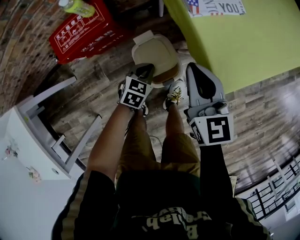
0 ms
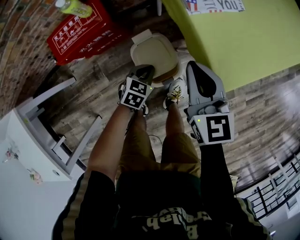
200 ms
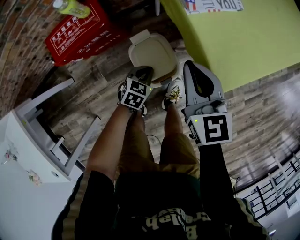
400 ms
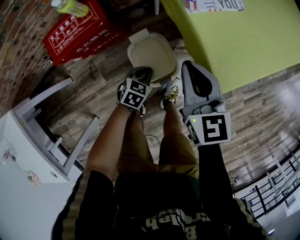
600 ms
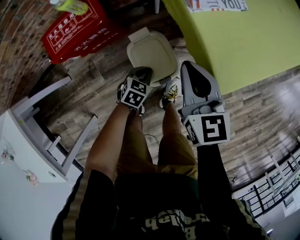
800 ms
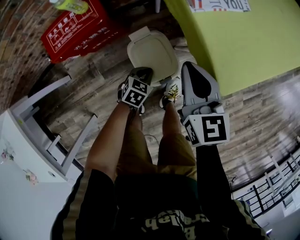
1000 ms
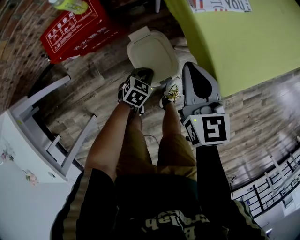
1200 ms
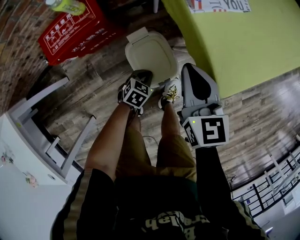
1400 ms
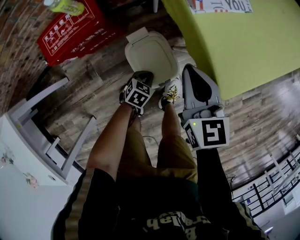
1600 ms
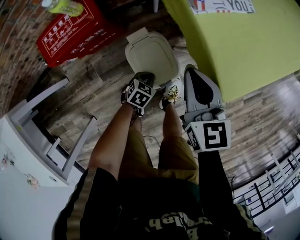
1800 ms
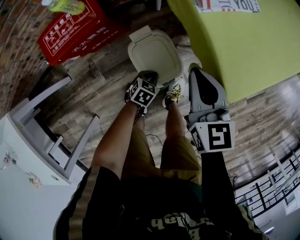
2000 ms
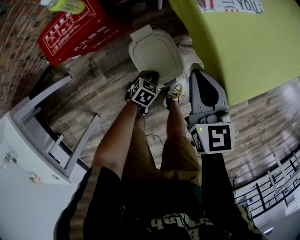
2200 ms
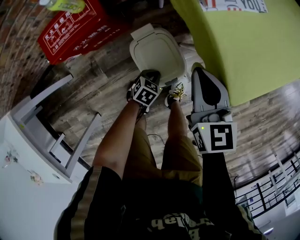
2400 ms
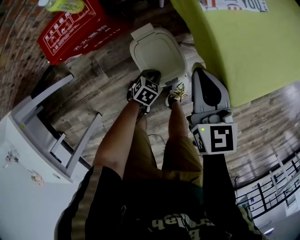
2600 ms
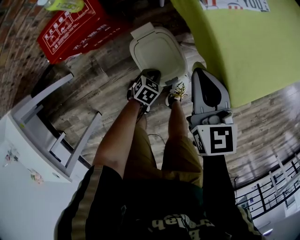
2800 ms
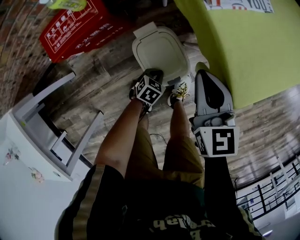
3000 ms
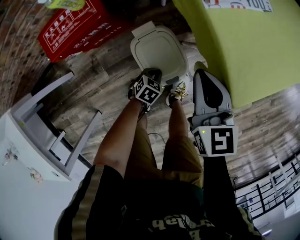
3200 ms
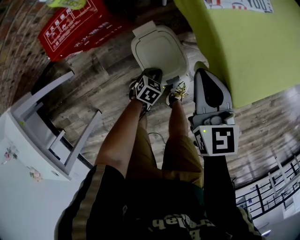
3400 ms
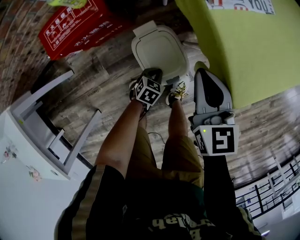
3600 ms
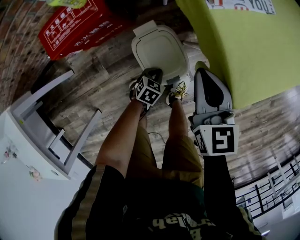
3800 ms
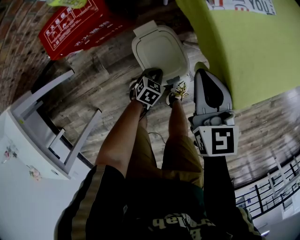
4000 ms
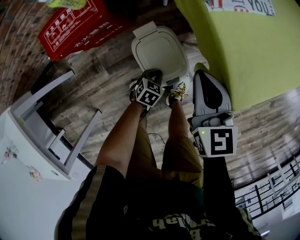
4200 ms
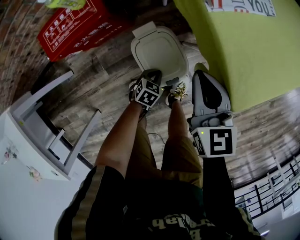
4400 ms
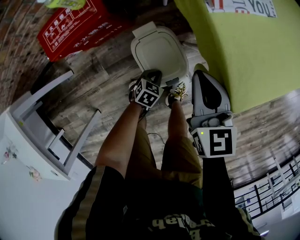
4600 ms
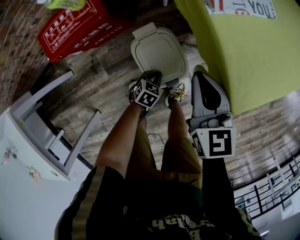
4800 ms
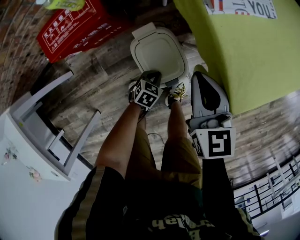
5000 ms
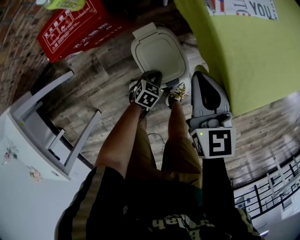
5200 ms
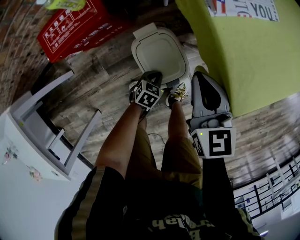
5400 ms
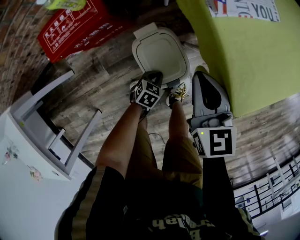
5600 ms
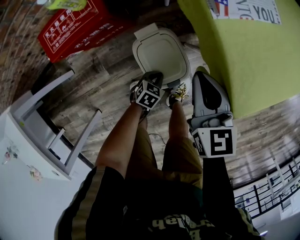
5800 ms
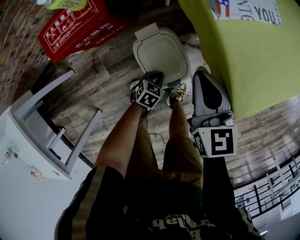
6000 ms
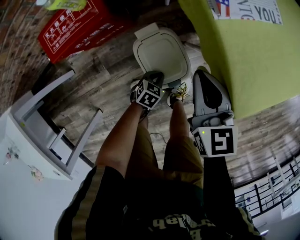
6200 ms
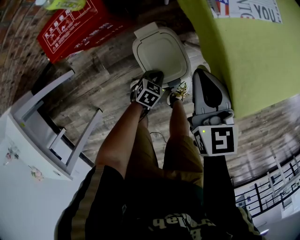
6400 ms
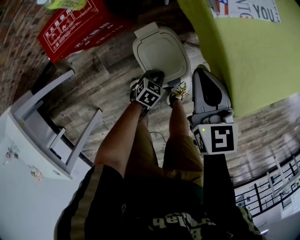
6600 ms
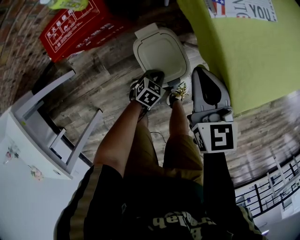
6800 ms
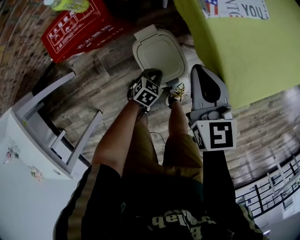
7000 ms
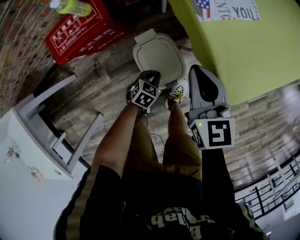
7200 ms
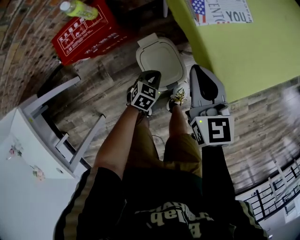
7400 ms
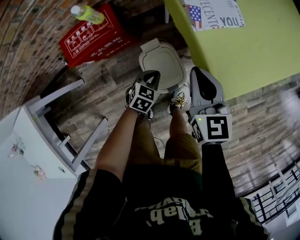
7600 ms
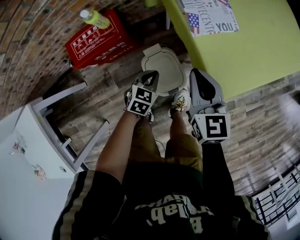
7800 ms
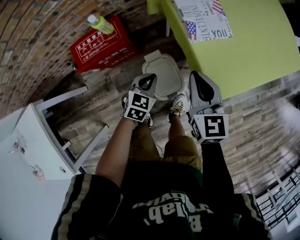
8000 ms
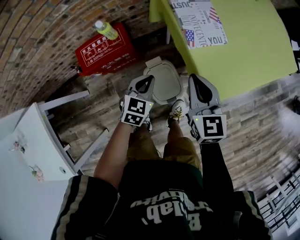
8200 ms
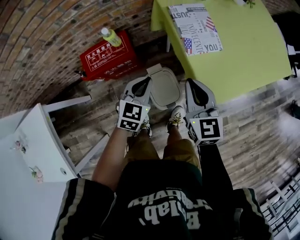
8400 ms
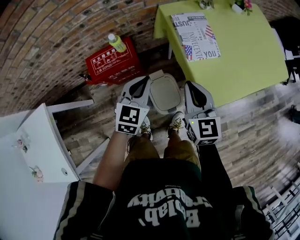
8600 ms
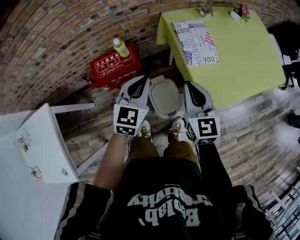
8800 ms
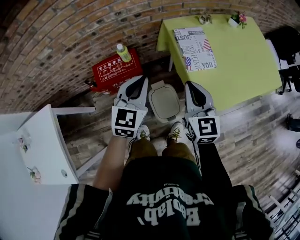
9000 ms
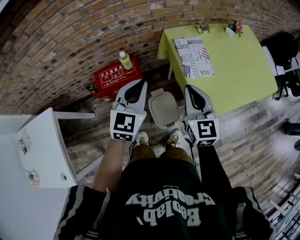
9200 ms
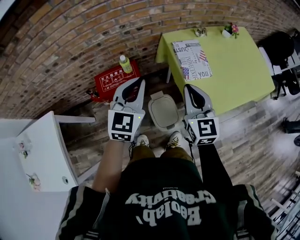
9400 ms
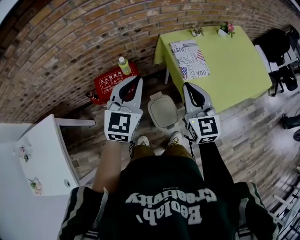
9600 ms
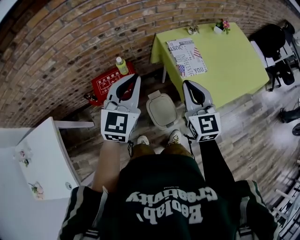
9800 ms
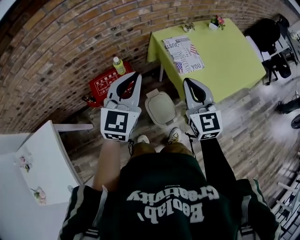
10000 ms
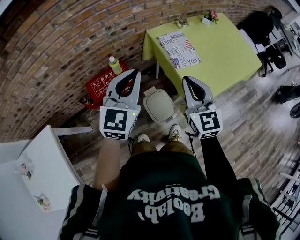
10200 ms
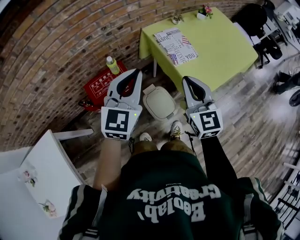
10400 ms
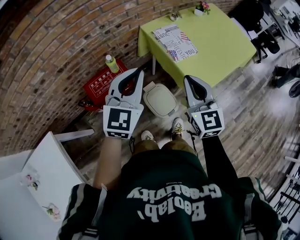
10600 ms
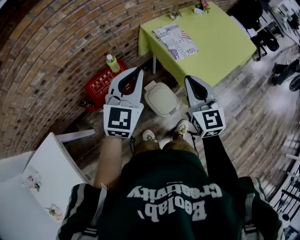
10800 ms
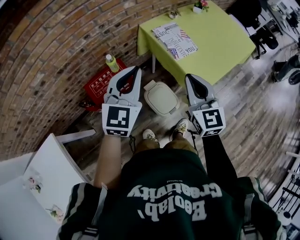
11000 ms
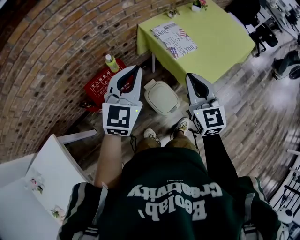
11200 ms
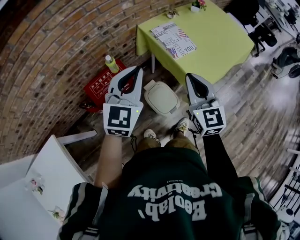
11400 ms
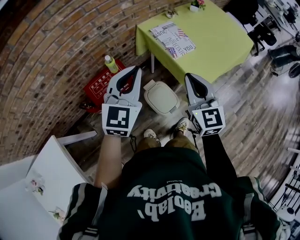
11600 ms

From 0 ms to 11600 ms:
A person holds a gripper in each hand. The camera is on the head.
From 0 ms to 1400 ms: The left gripper heads downward, covering some 10 cm.
From 1400 ms to 2800 ms: The left gripper heads downward, covering approximately 5 cm.
From 2800 ms to 4400 ms: The grippers stay close to where they were, moving slightly.
From 4400 ms to 5800 ms: The two grippers keep their place.
From 5800 ms to 7200 ms: The left gripper is displaced upward by roughly 5 cm.
From 7200 ms to 8800 ms: The right gripper heads upward, covering about 20 cm. The left gripper goes roughly 50 cm upward, and tips its fingers upward by some 30 degrees.
From 8800 ms to 10200 ms: Both grippers move upward, roughly 15 cm.
From 10200 ms to 11600 ms: The grippers stay close to where they were, moving slightly.

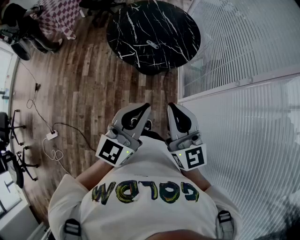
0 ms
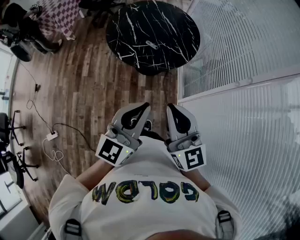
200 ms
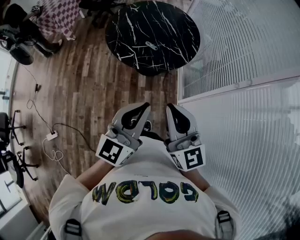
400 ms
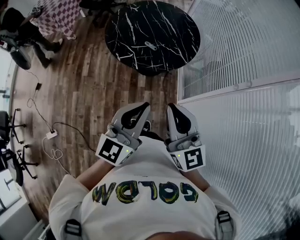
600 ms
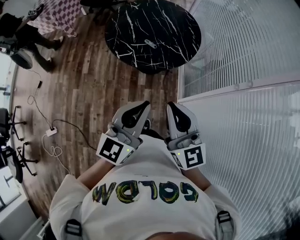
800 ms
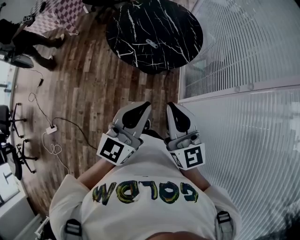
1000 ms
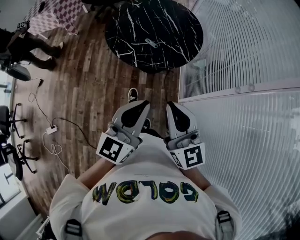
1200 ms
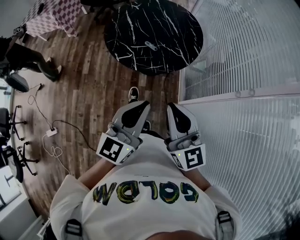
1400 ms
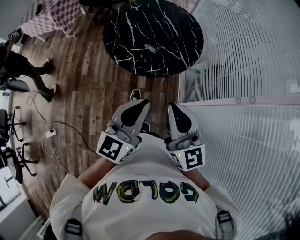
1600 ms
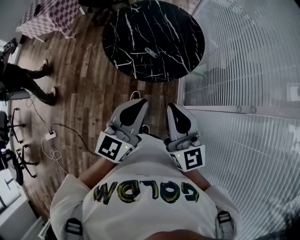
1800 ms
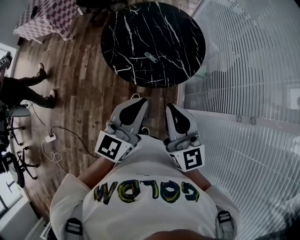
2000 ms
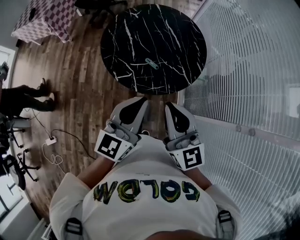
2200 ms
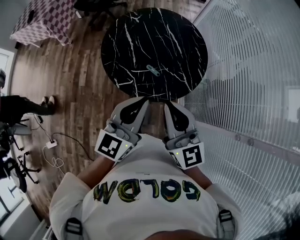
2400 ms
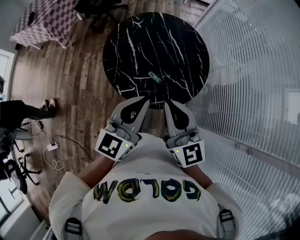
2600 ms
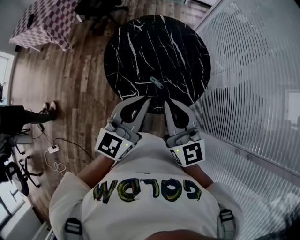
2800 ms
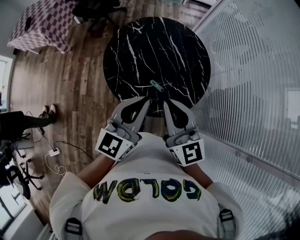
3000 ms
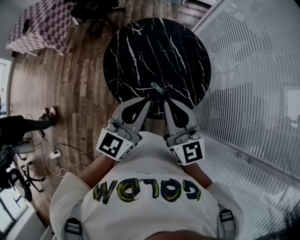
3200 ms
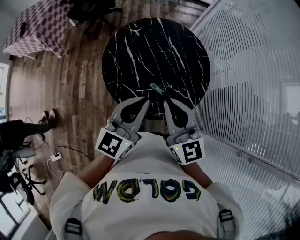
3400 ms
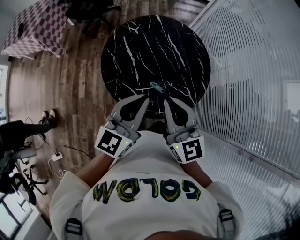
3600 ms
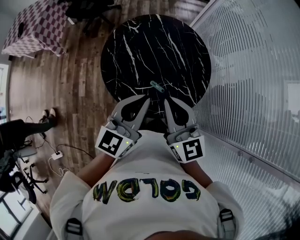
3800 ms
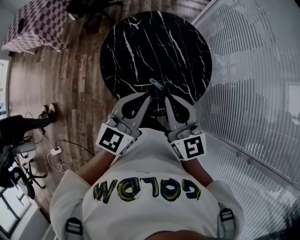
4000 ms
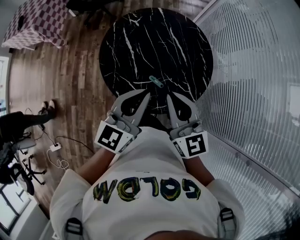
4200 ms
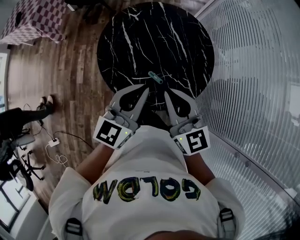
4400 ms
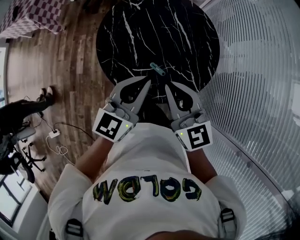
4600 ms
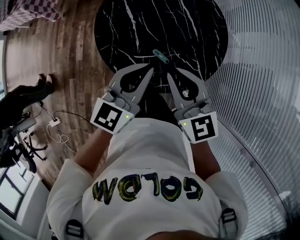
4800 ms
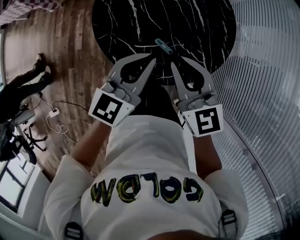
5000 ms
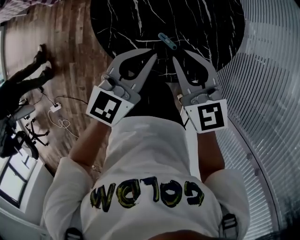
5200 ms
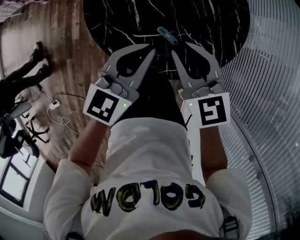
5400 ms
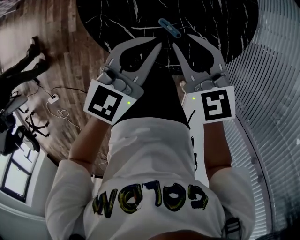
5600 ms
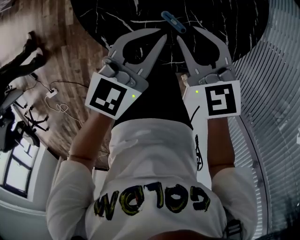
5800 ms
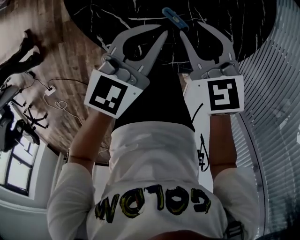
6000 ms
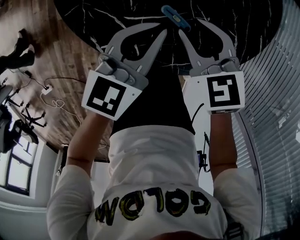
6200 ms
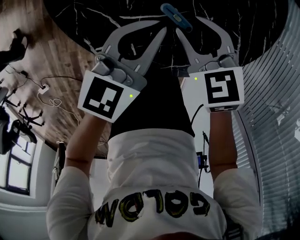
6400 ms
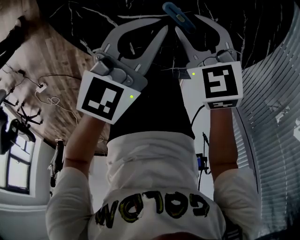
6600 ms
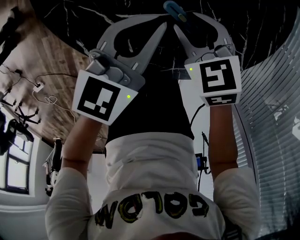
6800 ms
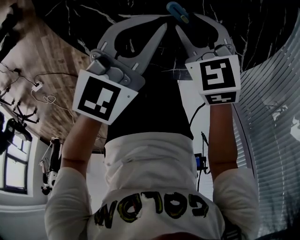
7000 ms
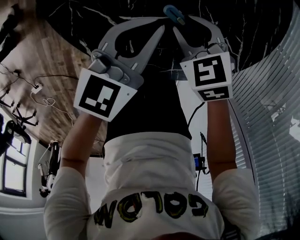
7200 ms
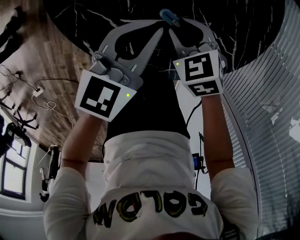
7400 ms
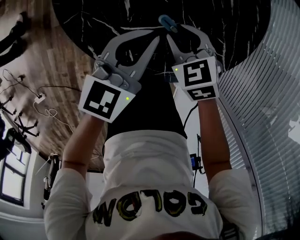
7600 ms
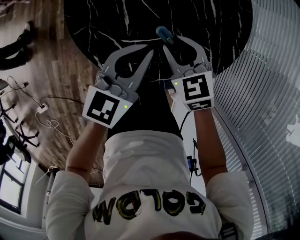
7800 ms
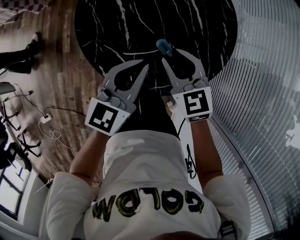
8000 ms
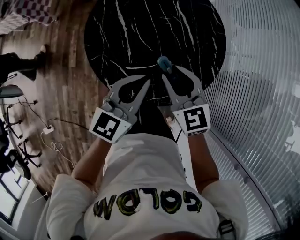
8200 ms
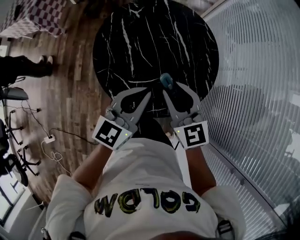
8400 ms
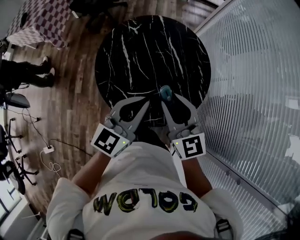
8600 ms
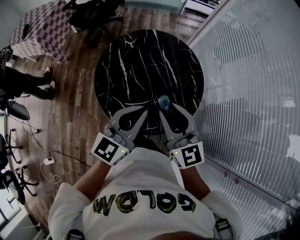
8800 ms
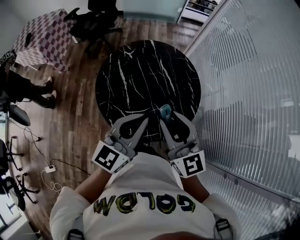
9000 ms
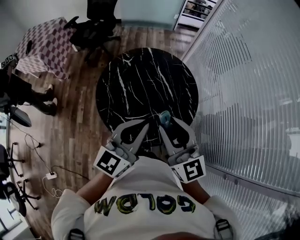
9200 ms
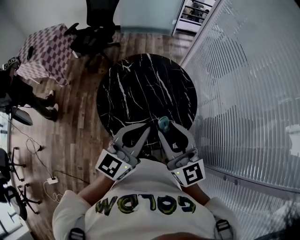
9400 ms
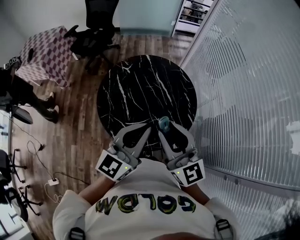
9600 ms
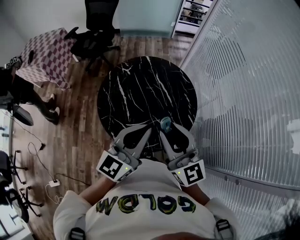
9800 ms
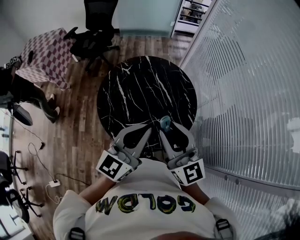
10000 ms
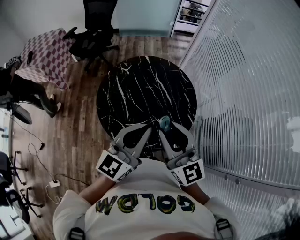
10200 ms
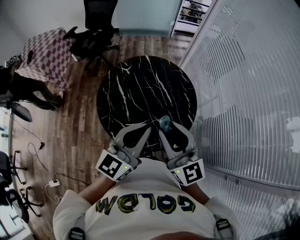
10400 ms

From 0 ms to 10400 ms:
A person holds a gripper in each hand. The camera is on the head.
From 0 ms to 1400 ms: The grippers both shift forward by some 5 cm.
From 1400 ms to 3000 ms: The grippers both shift forward by about 35 cm.
From 3000 ms to 4400 ms: The right gripper travels forward and downward by some 10 cm; the left gripper shifts about 5 cm forward.
From 4400 ms to 6000 ms: Both grippers move downward, approximately 30 cm. The right gripper tilts its fingers approximately 30 degrees downward, and opens its fingers.
From 6000 ms to 7400 ms: The left gripper moves downward, roughly 5 cm; the right gripper moves downward, roughly 15 cm.
From 7400 ms to 9000 ms: Both grippers move upward, roughly 40 cm. The right gripper angles its fingers upward, by some 60 degrees; the left gripper turns by roughly 20 degrees.
From 9000 ms to 10400 ms: The right gripper moves roughly 5 cm; the left gripper shifts by some 5 cm.

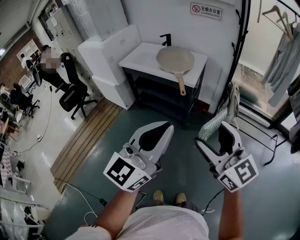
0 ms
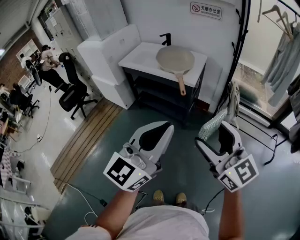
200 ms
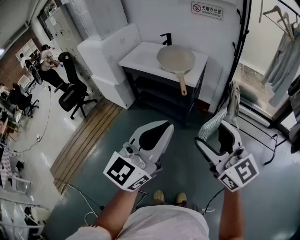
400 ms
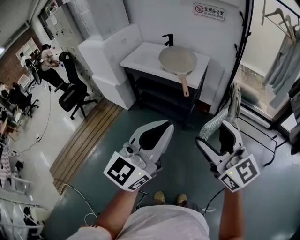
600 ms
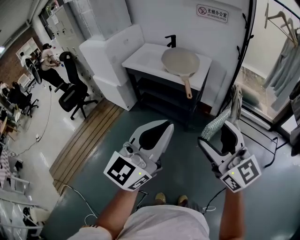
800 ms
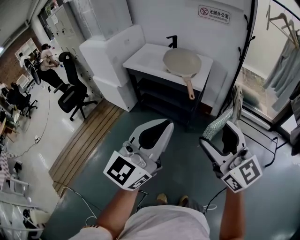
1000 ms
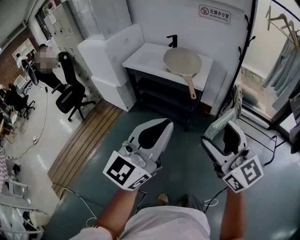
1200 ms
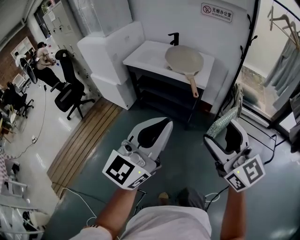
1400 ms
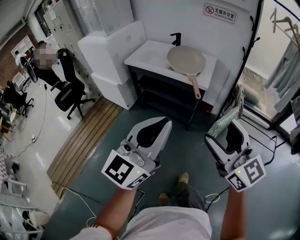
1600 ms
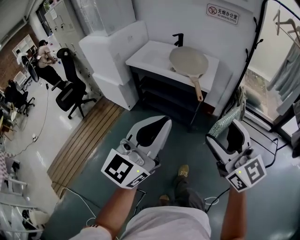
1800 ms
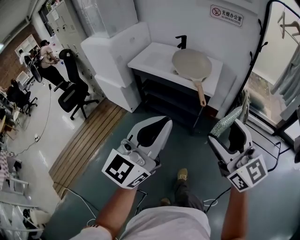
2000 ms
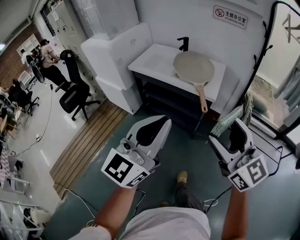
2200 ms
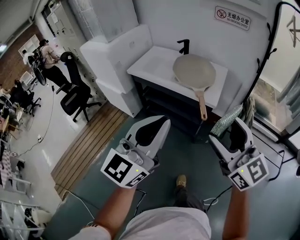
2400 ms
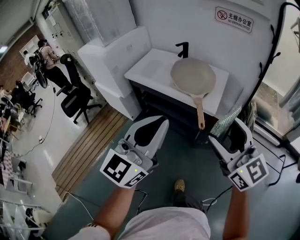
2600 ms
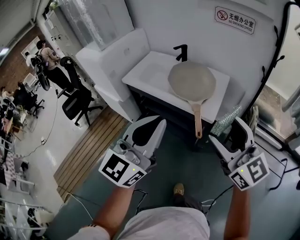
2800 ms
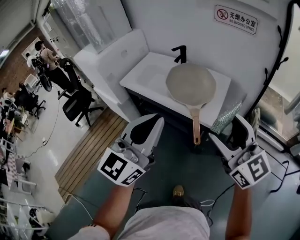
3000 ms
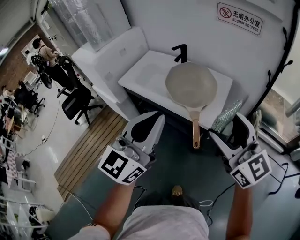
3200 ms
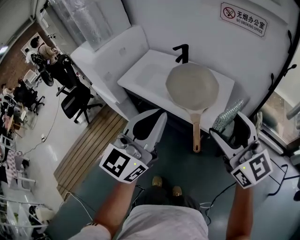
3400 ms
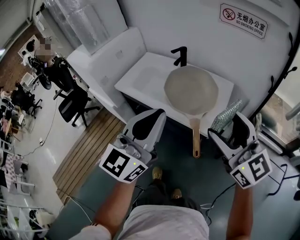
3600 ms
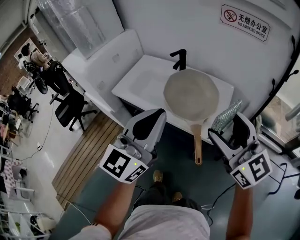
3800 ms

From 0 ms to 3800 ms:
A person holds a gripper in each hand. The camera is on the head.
From 0 ms to 1200 ms: Both grippers travel together to the left, approximately 10 cm.
From 1200 ms to 2600 ms: The grippers both shift forward by approximately 20 cm.
From 2600 ms to 3800 ms: The grippers both shift forward by roughly 20 cm.
